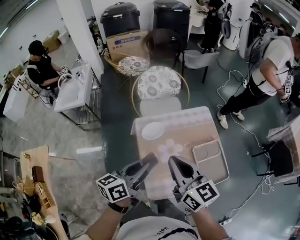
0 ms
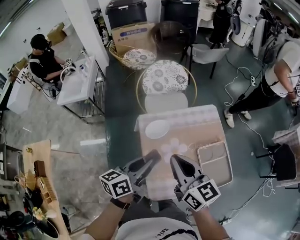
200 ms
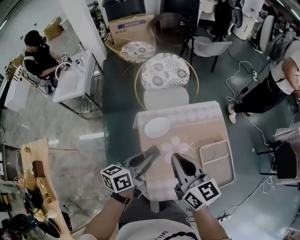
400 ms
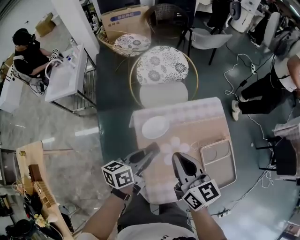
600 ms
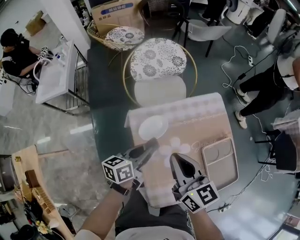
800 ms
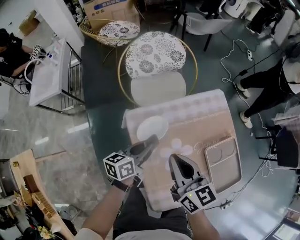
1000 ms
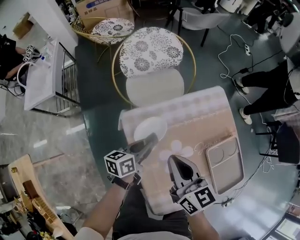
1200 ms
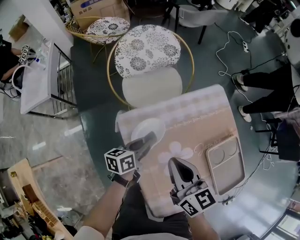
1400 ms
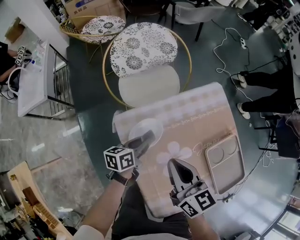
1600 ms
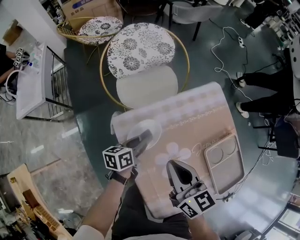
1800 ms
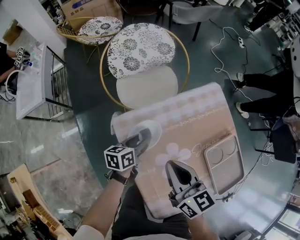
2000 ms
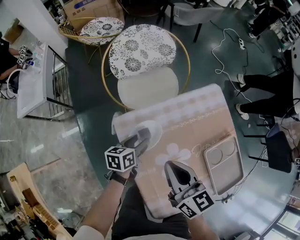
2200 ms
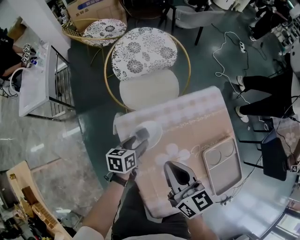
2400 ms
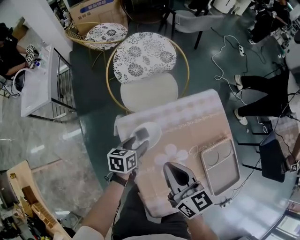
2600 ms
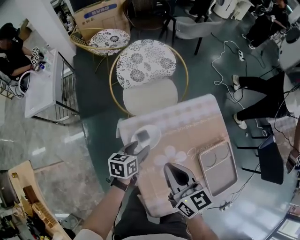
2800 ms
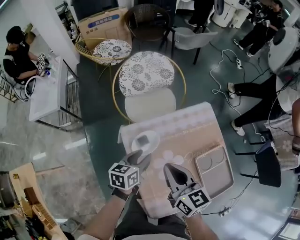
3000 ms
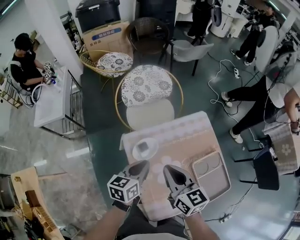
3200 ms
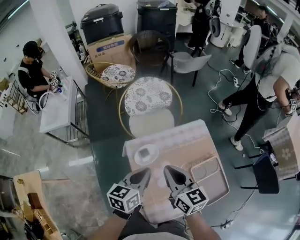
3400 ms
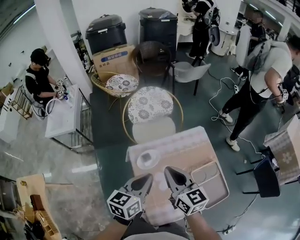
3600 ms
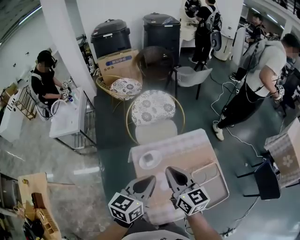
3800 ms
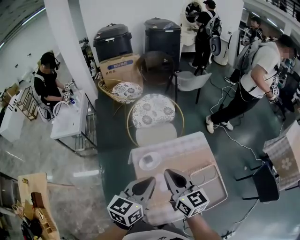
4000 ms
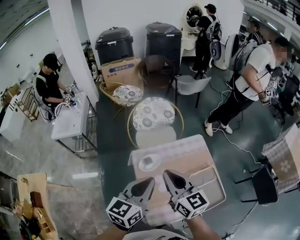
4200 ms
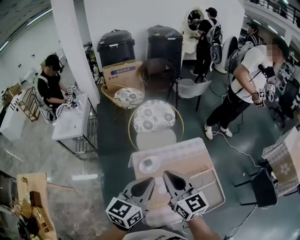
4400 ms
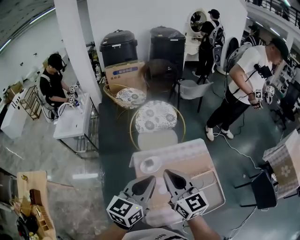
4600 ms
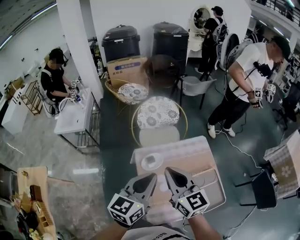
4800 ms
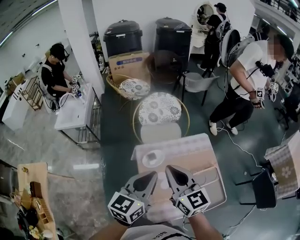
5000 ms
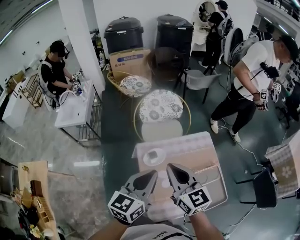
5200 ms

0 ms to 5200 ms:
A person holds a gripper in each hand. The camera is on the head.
0 ms to 1800 ms: The right gripper heads downward and forward, covering some 30 cm, and turns by approximately 20 degrees, while the left gripper shifts about 40 cm downward and forward, and changes its angle by some 20 degrees.
1800 ms to 3400 ms: The right gripper is displaced upward by roughly 15 cm. The left gripper goes approximately 30 cm upward, turns by approximately 20 degrees, and opens, then closes once more.
3400 ms to 5200 ms: The left gripper shifts some 15 cm upward and backward. The right gripper heads upward, covering roughly 10 cm.

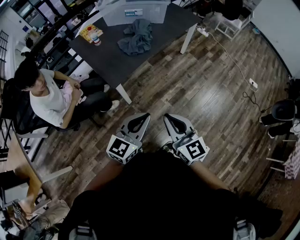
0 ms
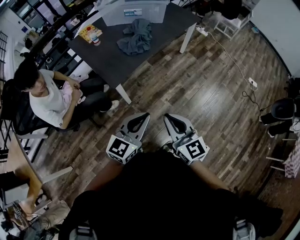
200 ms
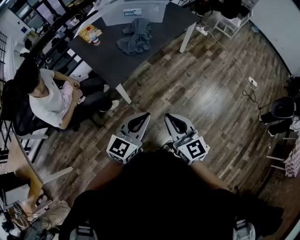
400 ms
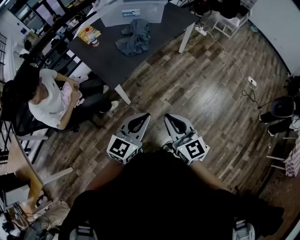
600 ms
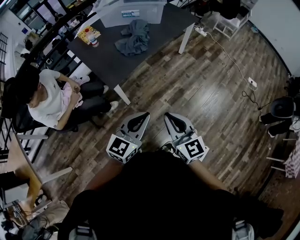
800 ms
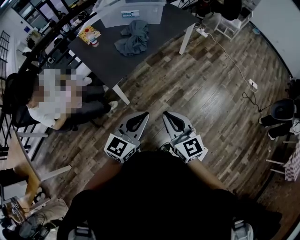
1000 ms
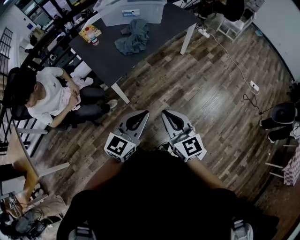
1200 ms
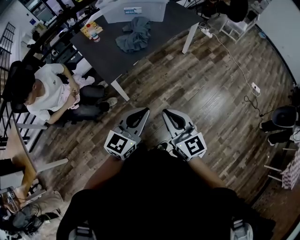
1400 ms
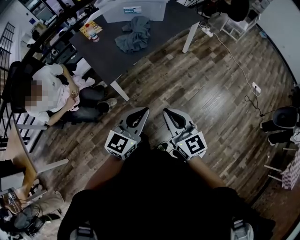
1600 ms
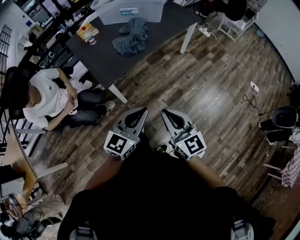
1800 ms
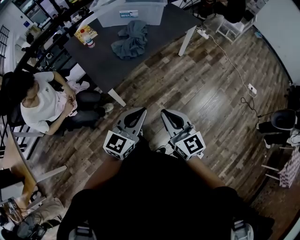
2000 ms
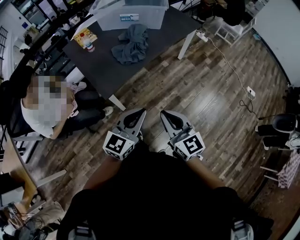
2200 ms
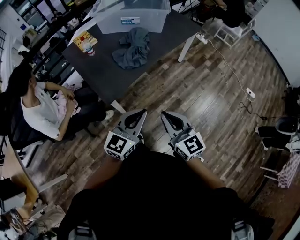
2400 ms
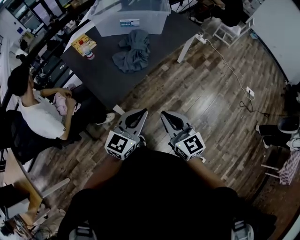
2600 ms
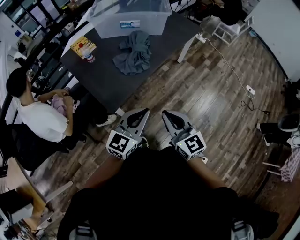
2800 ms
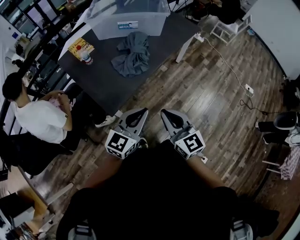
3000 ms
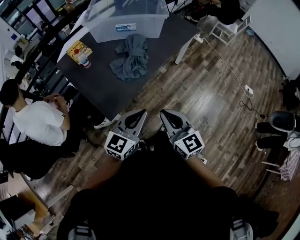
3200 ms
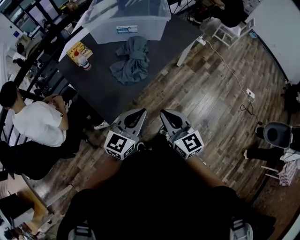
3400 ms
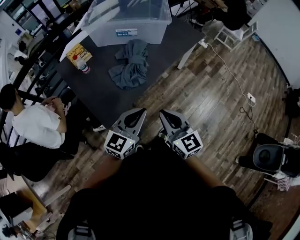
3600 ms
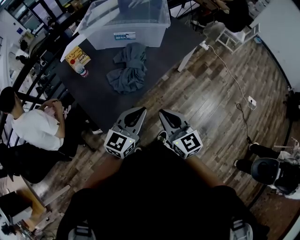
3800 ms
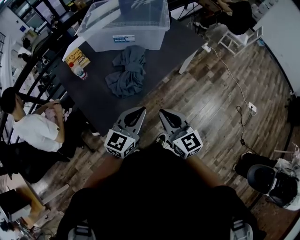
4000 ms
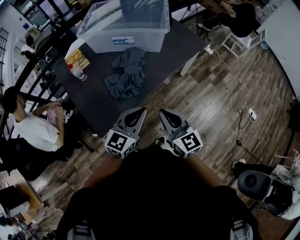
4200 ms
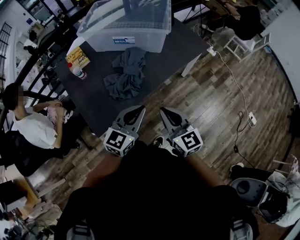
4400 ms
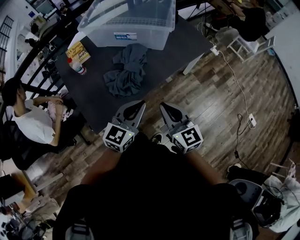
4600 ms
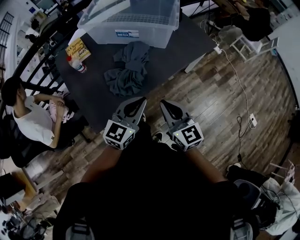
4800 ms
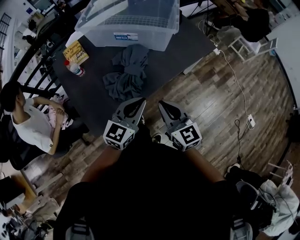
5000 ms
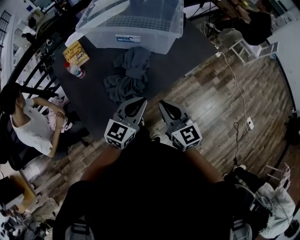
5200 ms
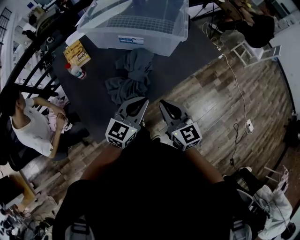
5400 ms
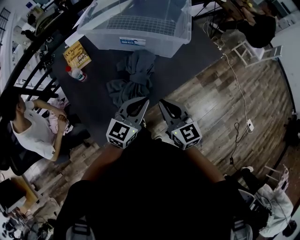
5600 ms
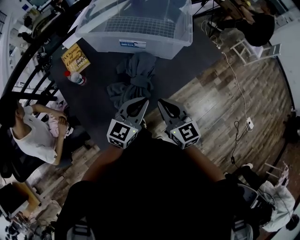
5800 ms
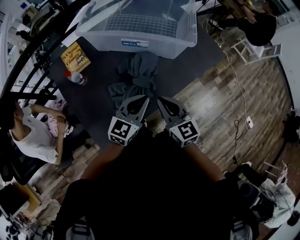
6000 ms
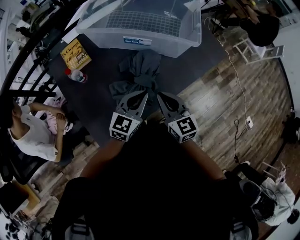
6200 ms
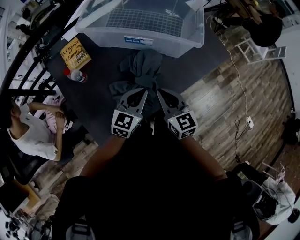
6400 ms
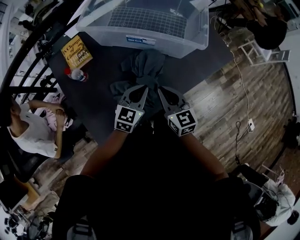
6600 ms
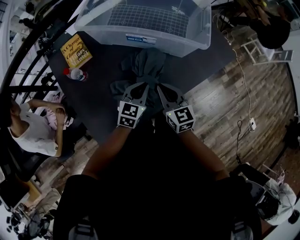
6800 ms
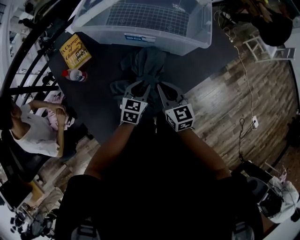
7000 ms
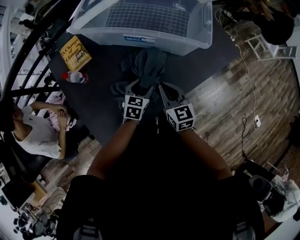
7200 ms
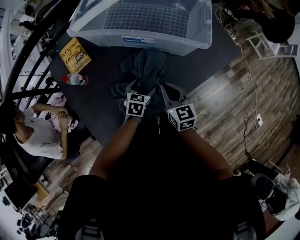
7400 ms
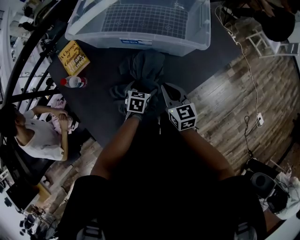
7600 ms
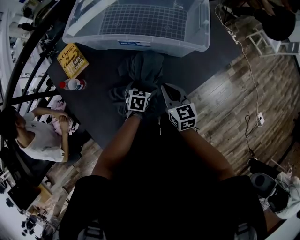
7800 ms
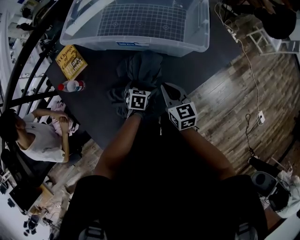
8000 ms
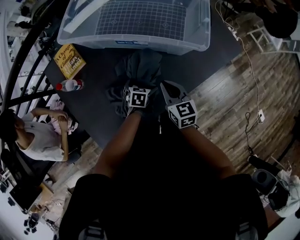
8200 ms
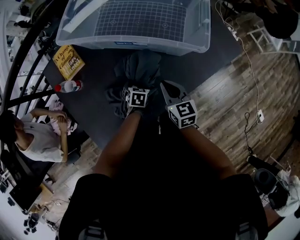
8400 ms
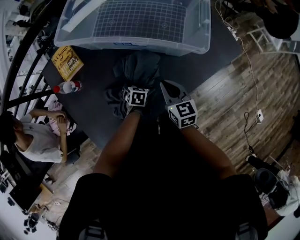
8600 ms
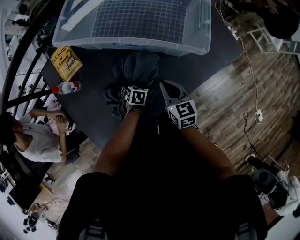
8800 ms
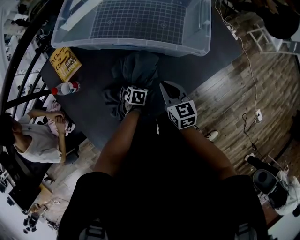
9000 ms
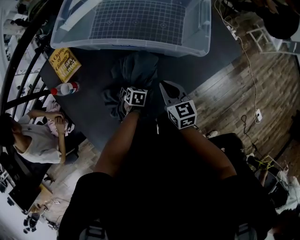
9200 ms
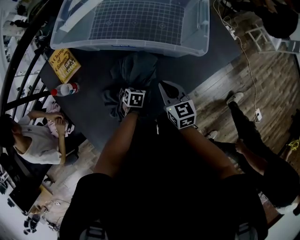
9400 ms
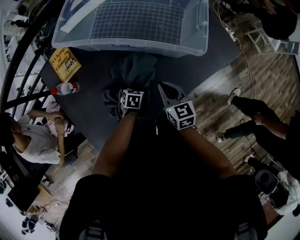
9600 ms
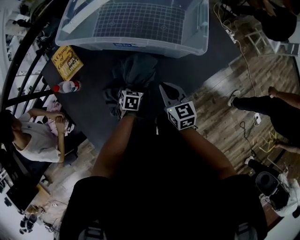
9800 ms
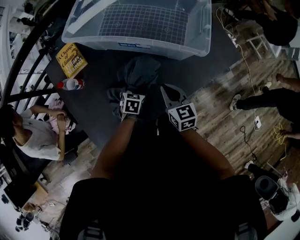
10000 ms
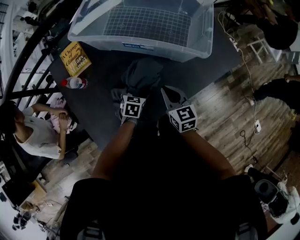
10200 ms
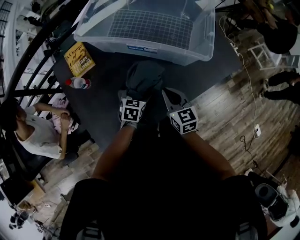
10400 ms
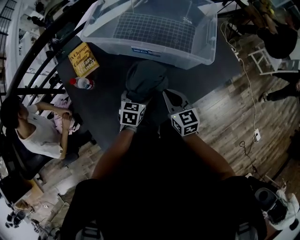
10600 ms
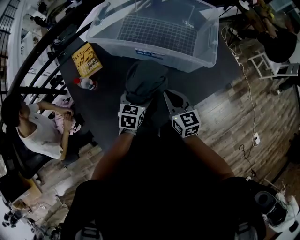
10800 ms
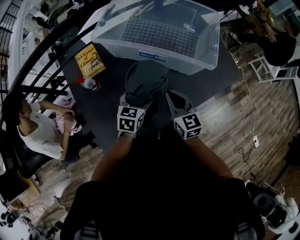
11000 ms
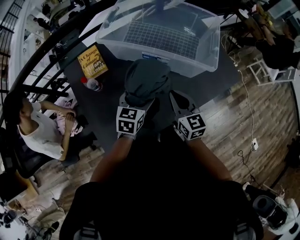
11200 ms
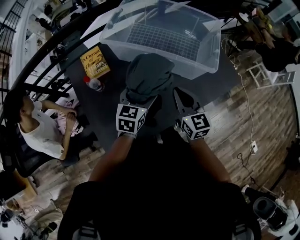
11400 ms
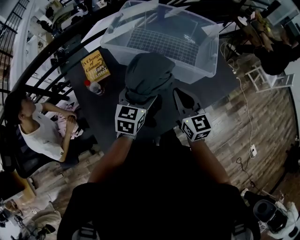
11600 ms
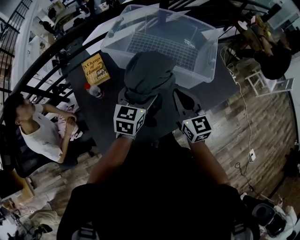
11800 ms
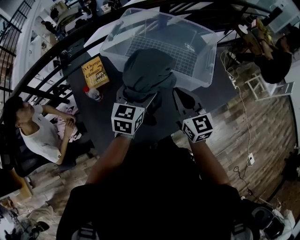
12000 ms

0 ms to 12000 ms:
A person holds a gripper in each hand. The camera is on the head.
0 ms to 1600 ms: The grippers both shift to the right by approximately 5 cm.
1600 ms to 3000 ms: The two grippers go about 20 cm forward and to the left.
3000 ms to 4400 ms: Both grippers move forward and to the right, roughly 25 cm.
4400 ms to 6000 ms: The right gripper heads forward and to the left, covering roughly 25 cm; the left gripper heads forward, covering some 20 cm.
6000 ms to 7600 ms: The right gripper goes roughly 15 cm forward and downward; the left gripper shifts approximately 25 cm downward and forward, tilts its fingers about 40 degrees downward, and opens its fingers.
7600 ms to 9000 ms: The left gripper moves downward, some 10 cm. The right gripper moves some 5 cm.
9000 ms to 10400 ms: The right gripper ends up about 5 cm from where it was. Meanwhile the left gripper is displaced upward by roughly 15 cm.
10400 ms to 12000 ms: The two grippers go about 25 cm upward. The left gripper swivels roughly 30 degrees.

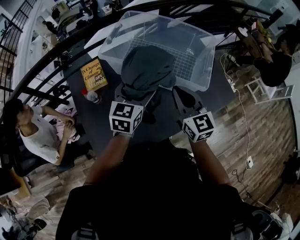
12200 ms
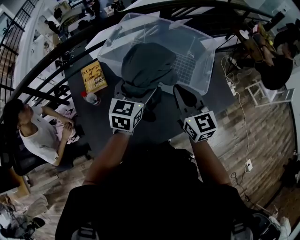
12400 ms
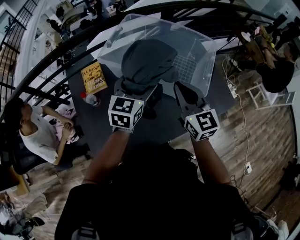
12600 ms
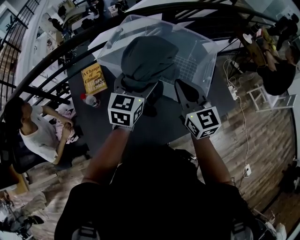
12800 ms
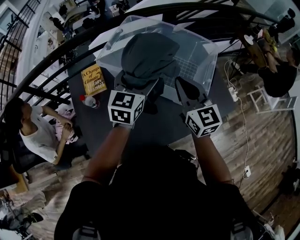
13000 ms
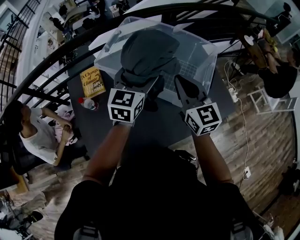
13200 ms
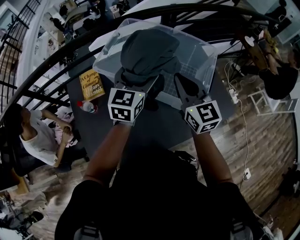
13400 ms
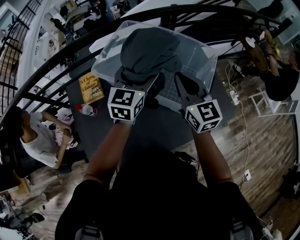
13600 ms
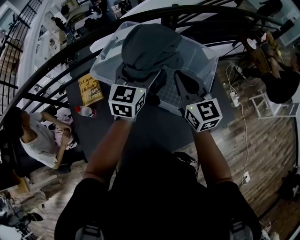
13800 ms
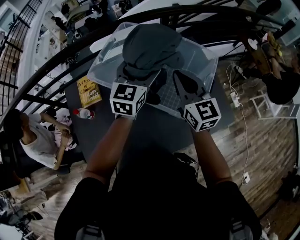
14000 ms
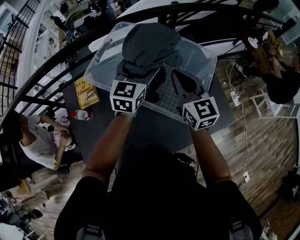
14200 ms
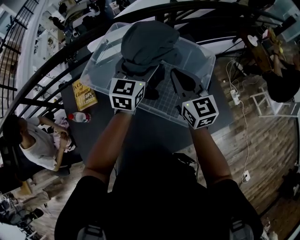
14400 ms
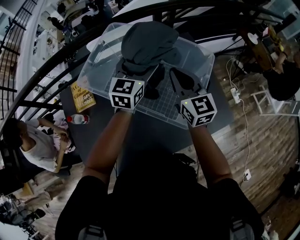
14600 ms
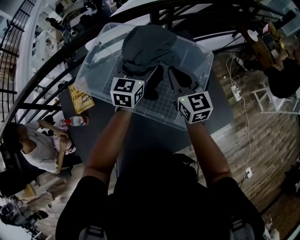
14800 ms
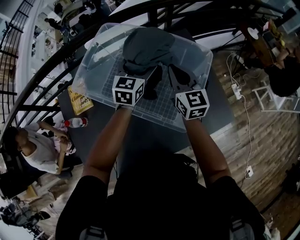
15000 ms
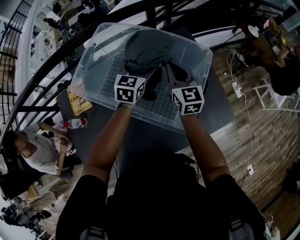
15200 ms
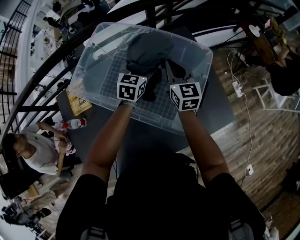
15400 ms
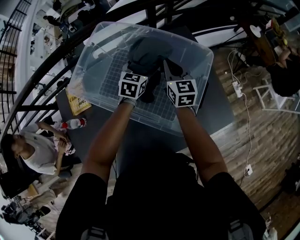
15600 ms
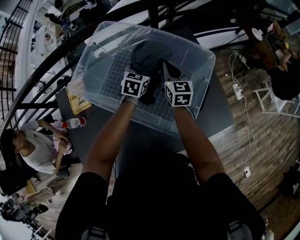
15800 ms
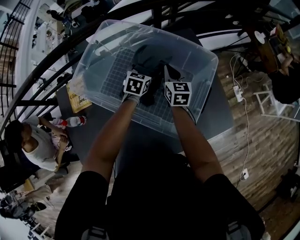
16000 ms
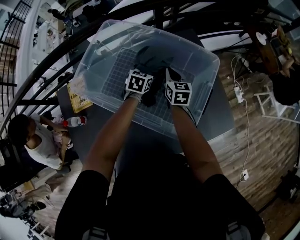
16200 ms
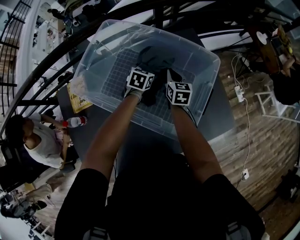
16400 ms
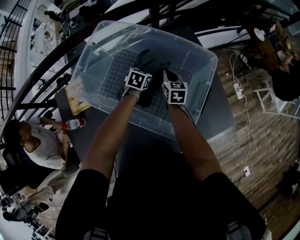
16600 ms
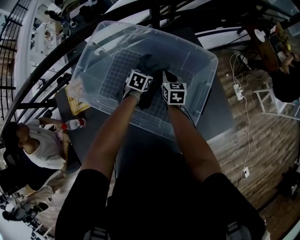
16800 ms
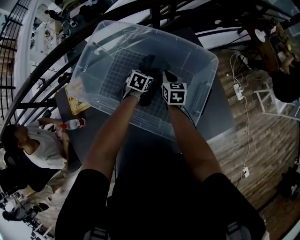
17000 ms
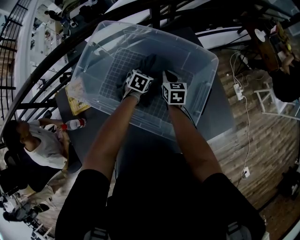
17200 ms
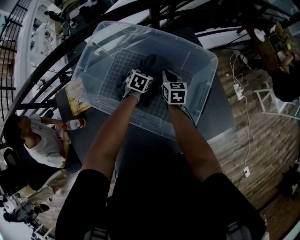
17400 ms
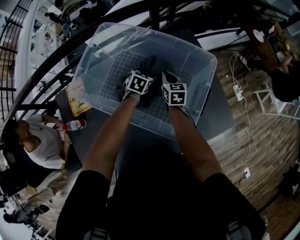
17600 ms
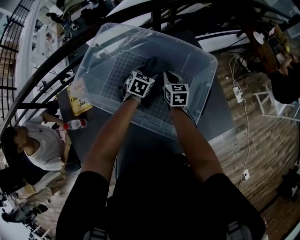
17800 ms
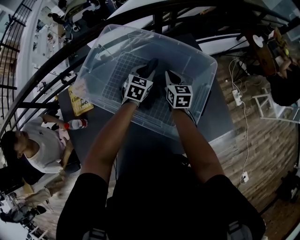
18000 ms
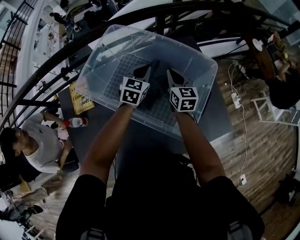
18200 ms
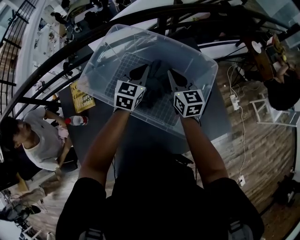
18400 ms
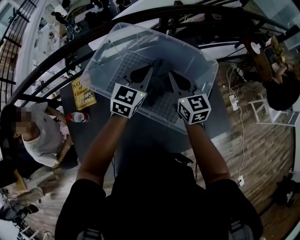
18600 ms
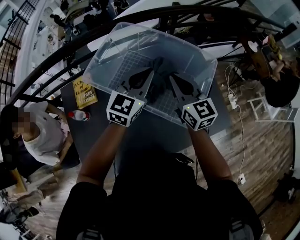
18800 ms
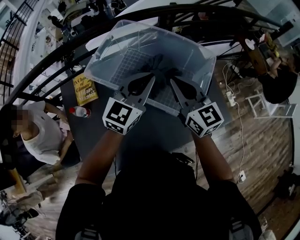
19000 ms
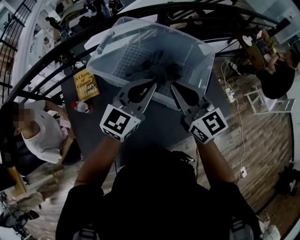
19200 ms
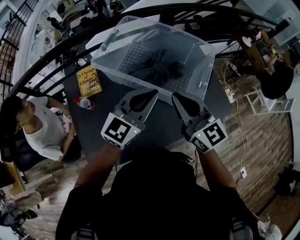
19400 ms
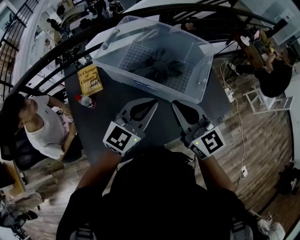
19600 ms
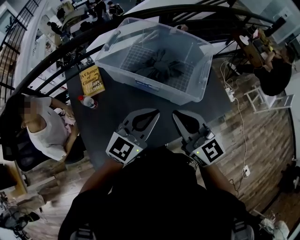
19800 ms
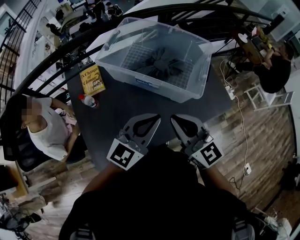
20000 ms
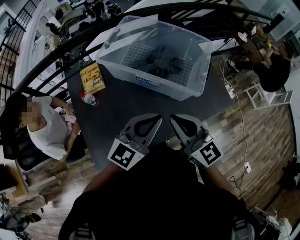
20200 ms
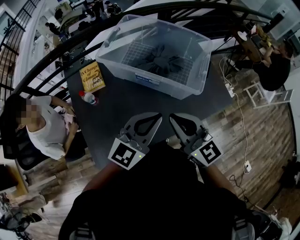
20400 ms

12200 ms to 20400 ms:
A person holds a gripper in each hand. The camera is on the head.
12200 ms to 13800 ms: The left gripper goes approximately 20 cm forward, to the right and upward, while the right gripper moves forward and to the right, some 20 cm.
13800 ms to 15400 ms: The left gripper is displaced downward, forward and to the right by about 25 cm. The right gripper goes approximately 20 cm forward, downward and to the right.
15400 ms to 17200 ms: The grippers both shift downward by roughly 15 cm. The left gripper rotates roughly 30 degrees; the right gripper swivels some 20 degrees.
17200 ms to 18800 ms: Both grippers travel together upward and backward, about 30 cm. The right gripper changes its angle by roughly 30 degrees, while the left gripper tips its fingers upward by roughly 50 degrees, and closes.
18800 ms to 20400 ms: Both grippers travel together backward, approximately 30 cm.
